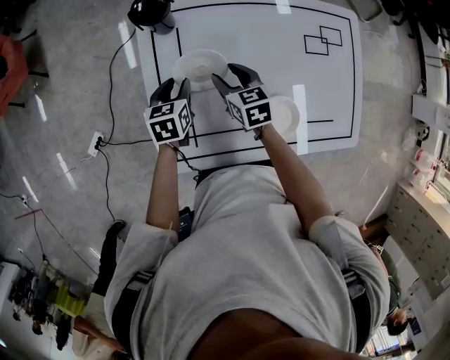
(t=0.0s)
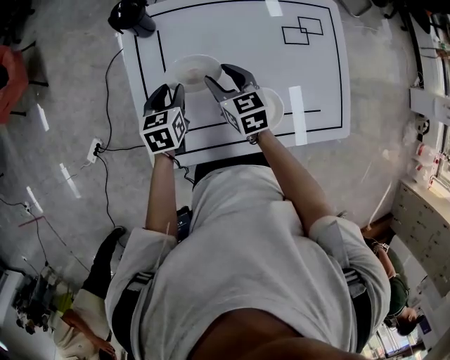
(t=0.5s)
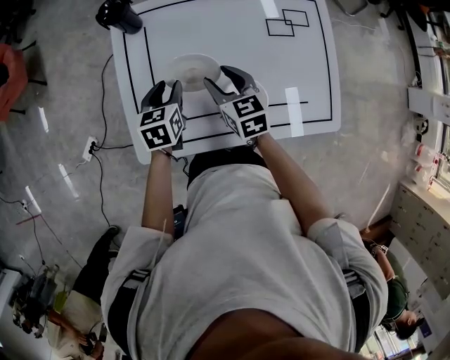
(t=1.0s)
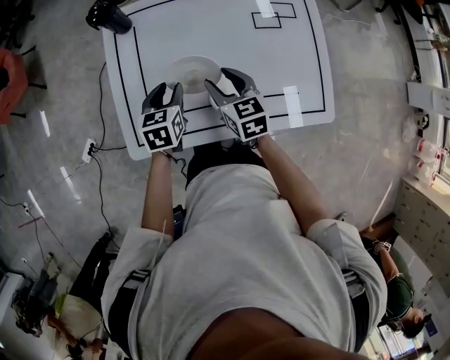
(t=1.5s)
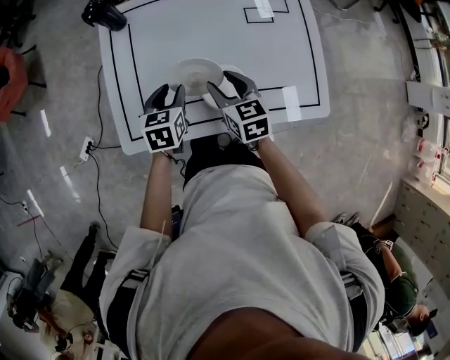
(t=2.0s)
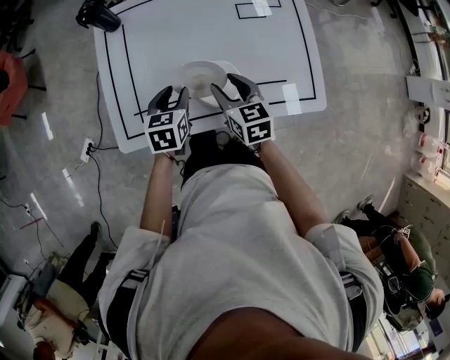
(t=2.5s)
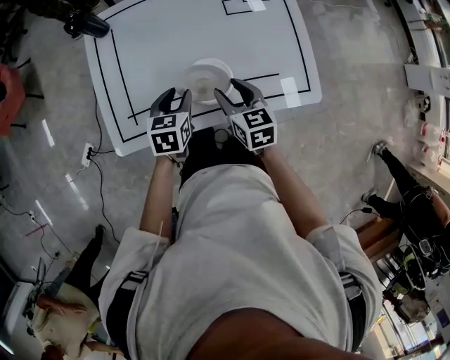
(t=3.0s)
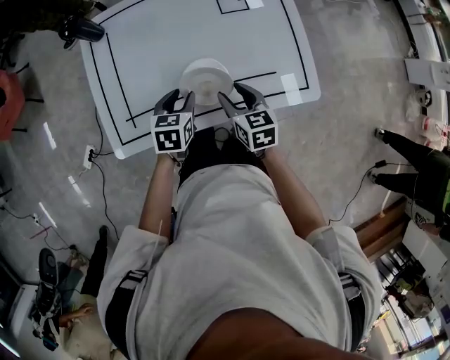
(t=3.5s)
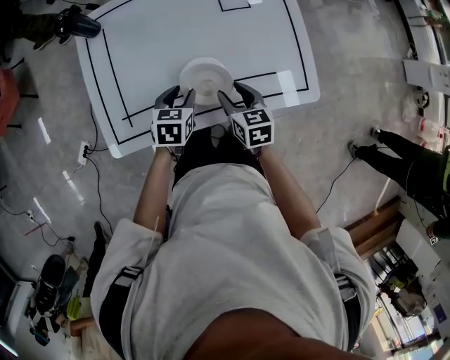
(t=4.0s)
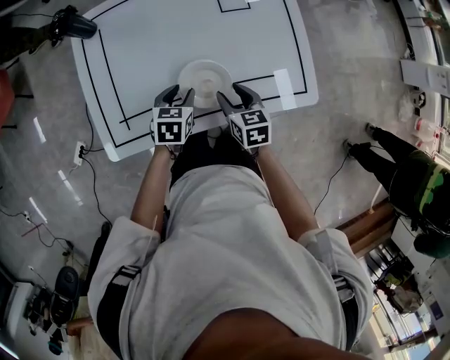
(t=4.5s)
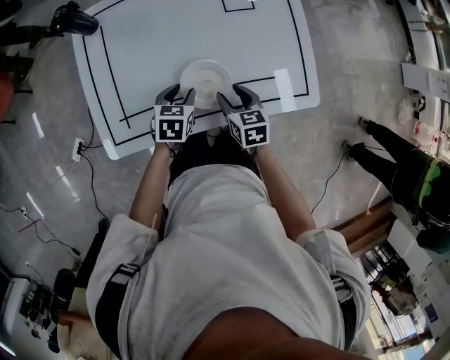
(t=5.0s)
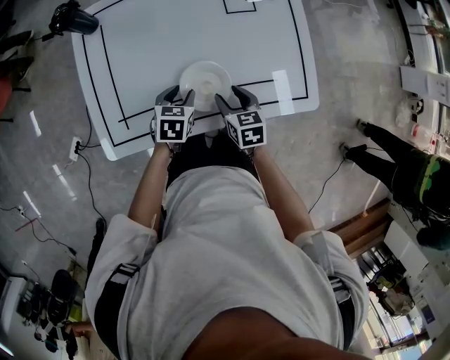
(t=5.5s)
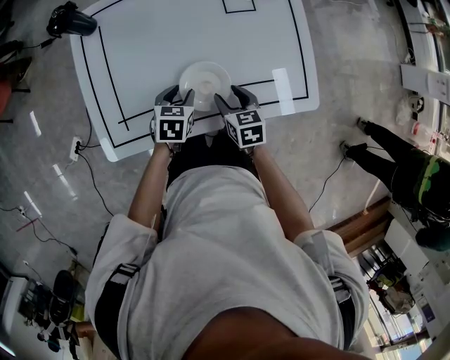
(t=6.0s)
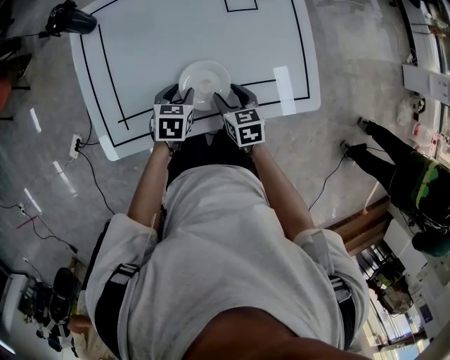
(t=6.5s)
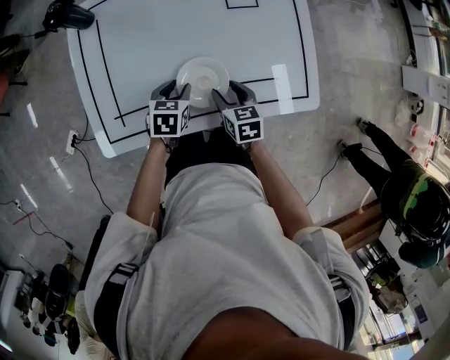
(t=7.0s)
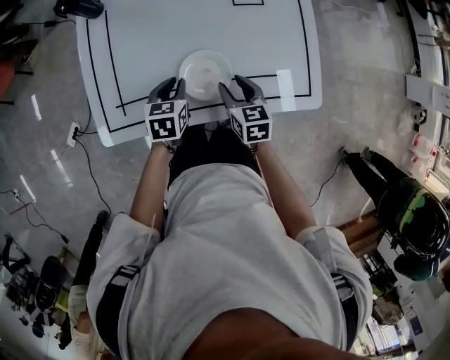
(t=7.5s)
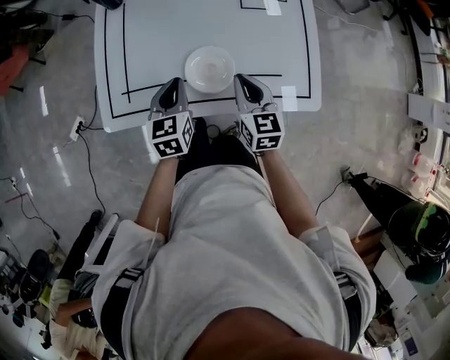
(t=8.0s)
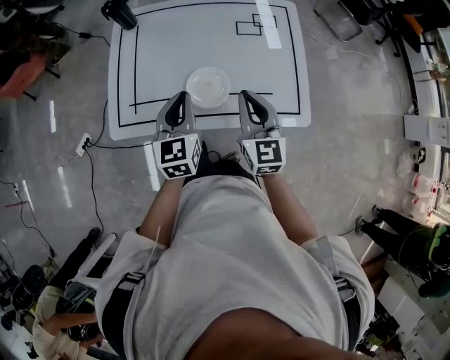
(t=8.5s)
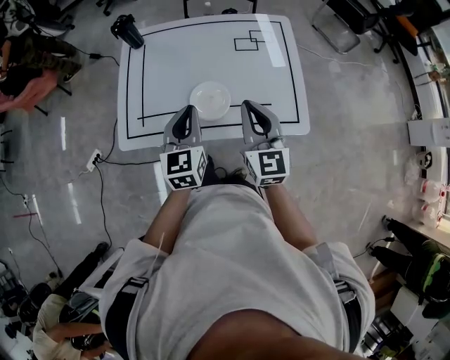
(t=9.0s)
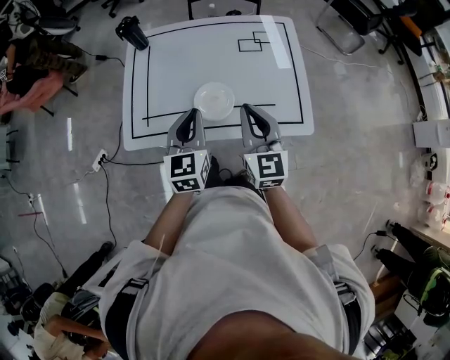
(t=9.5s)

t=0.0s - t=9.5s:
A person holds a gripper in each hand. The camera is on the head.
t=0.0s - t=2.0s: Both grippers move backward and to the right, roughly 25 cm.
t=2.0s - t=4.0s: The right gripper is displaced to the right, downward and backward by about 15 cm, while the left gripper goes approximately 10 cm to the right and downward.
t=4.0s - t=5.5s: The grippers move only a little.
t=5.5s - t=7.5s: The left gripper closes its fingers.
t=7.5s - t=9.5s: The right gripper moves upward, about 25 cm, angles its fingers upward, by about 30 degrees, and closes, while the left gripper travels upward and backward by roughly 25 cm, and tilts its fingers about 30 degrees upward.

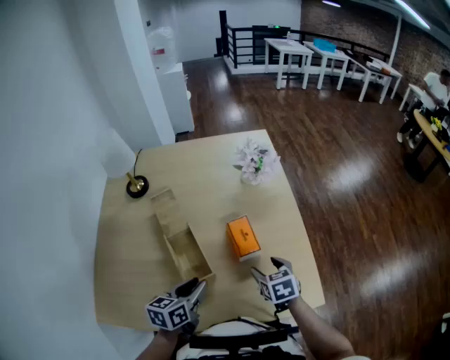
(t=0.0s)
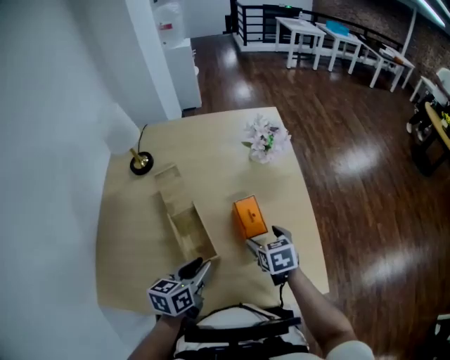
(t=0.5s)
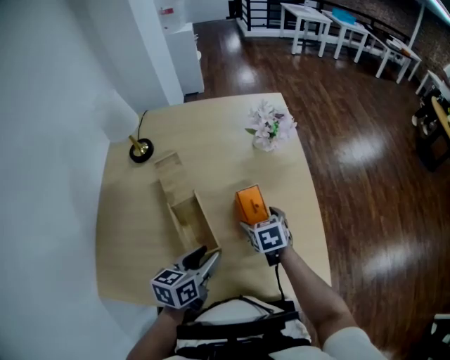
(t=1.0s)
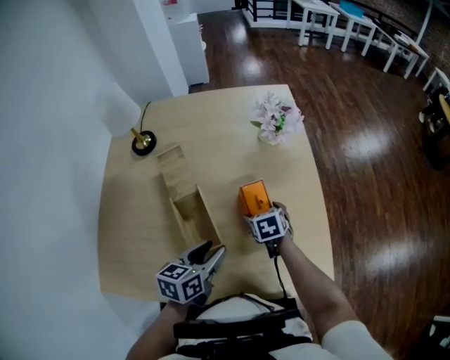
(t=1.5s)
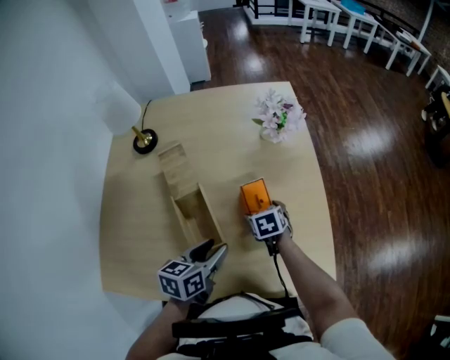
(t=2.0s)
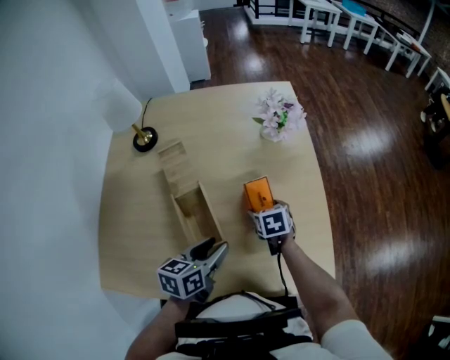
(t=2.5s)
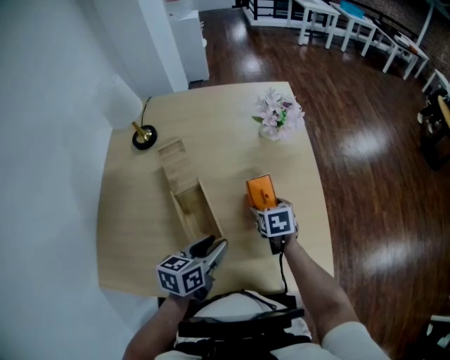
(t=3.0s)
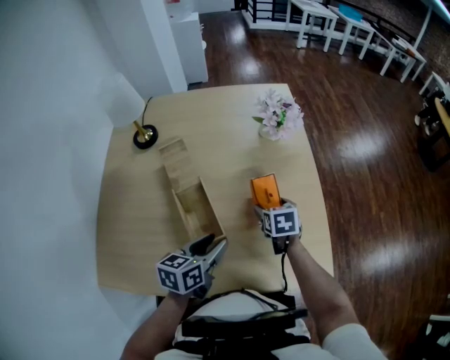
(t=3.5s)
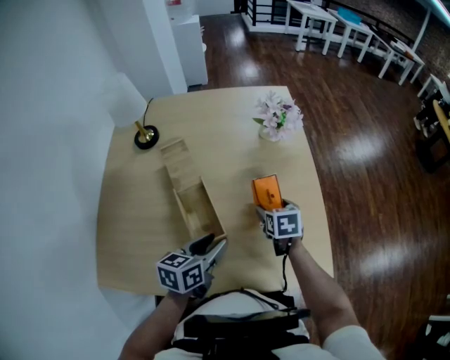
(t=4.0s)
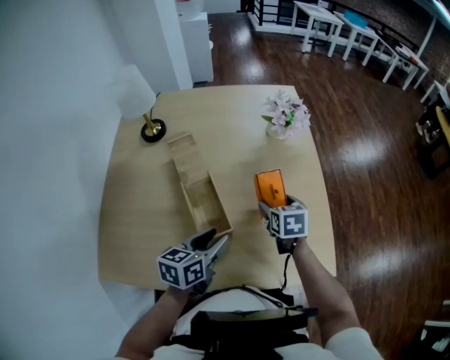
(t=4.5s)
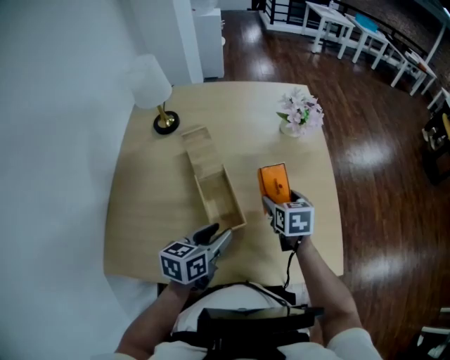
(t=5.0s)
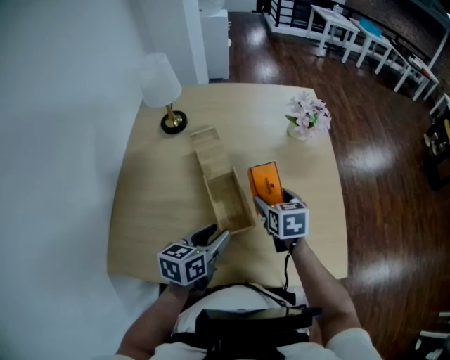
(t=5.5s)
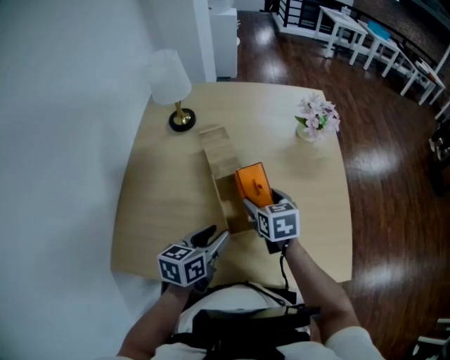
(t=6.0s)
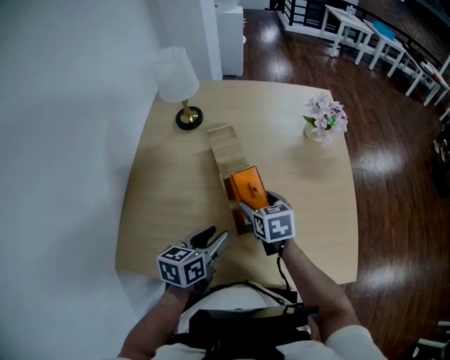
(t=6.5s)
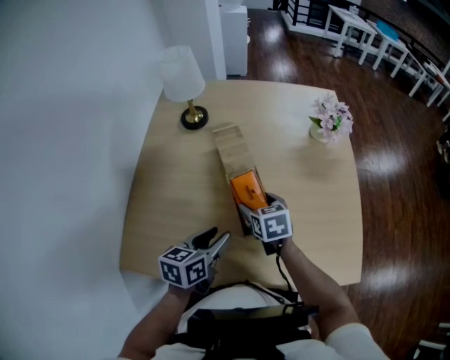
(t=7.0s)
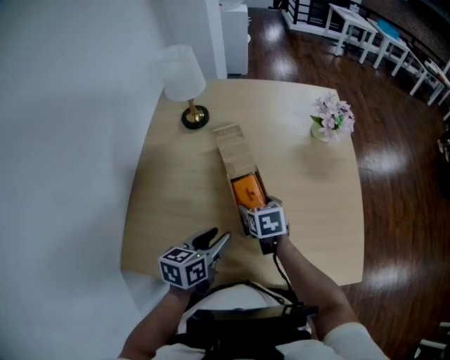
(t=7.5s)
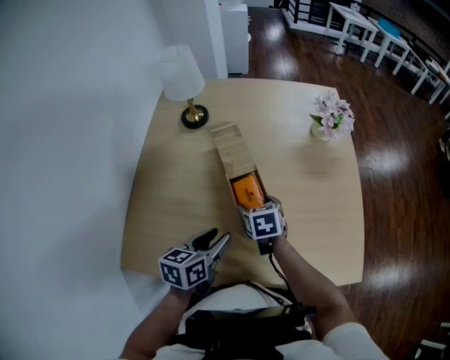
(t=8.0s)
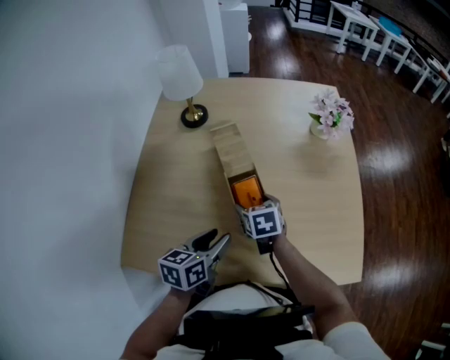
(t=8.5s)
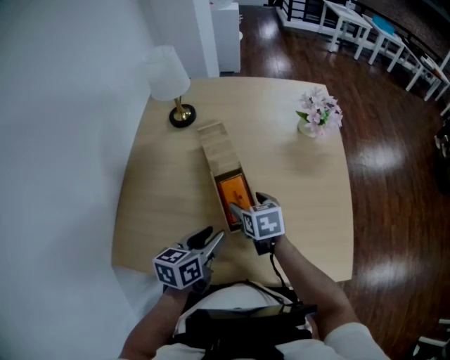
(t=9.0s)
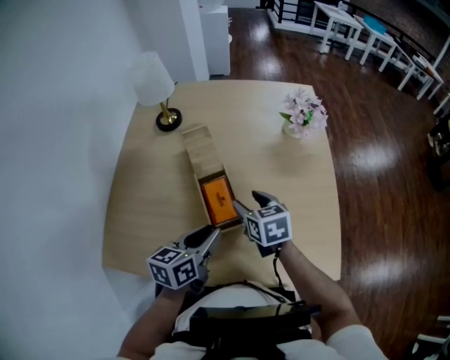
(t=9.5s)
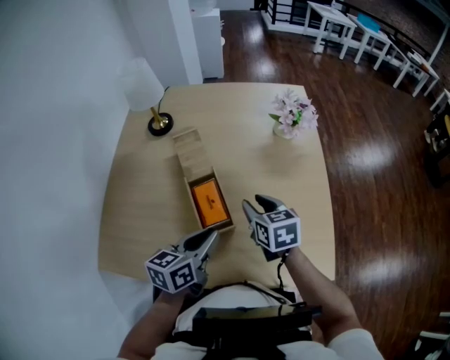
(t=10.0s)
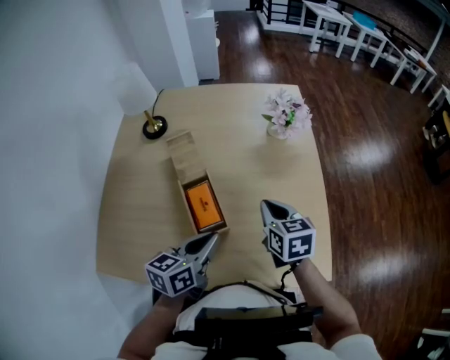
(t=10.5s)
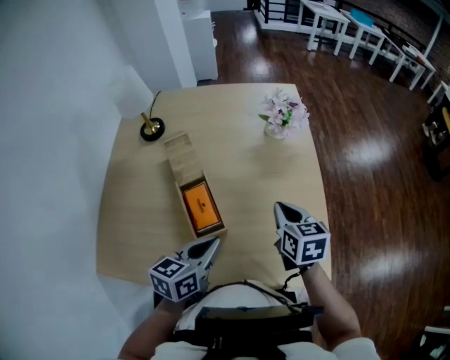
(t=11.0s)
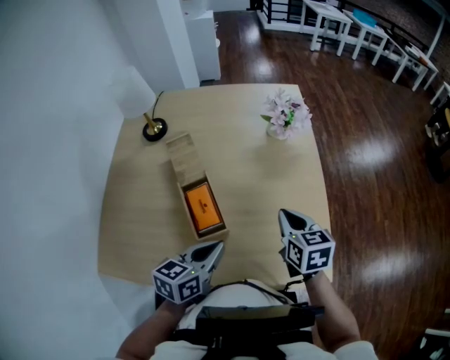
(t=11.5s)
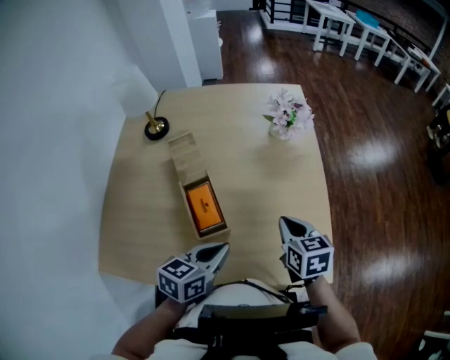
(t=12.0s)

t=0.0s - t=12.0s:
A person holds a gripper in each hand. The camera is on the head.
t=0.0s - t=2.0s: The right gripper travels forward, downward and to the left by roughly 15 cm, and opens its fingers. Meanwhile the left gripper goes some 5 cm forward.
t=2.0s - t=4.0s: The right gripper goes some 5 cm upward.
t=4.0s - t=6.0s: The left gripper moves to the left, roughly 10 cm. The right gripper travels to the left by roughly 20 cm.
t=6.0s - t=8.0s: The right gripper goes about 10 cm downward and to the left.
t=8.0s - t=10.0s: The right gripper is displaced to the right and upward by about 15 cm, and closes up. Meanwhile the left gripper moves to the right, roughly 10 cm, and closes up.
t=10.0s - t=12.0s: The right gripper shifts approximately 10 cm to the right, and closes; the left gripper shifts roughly 5 cm to the right.

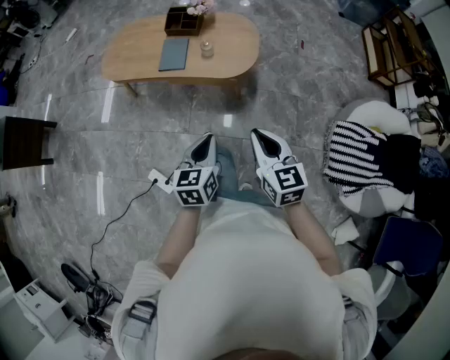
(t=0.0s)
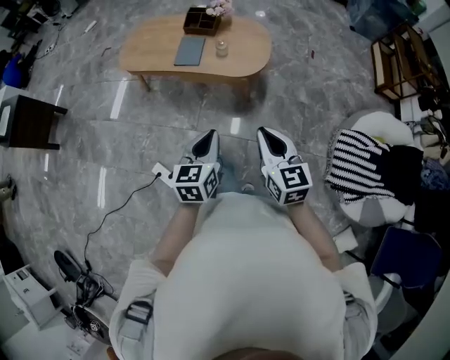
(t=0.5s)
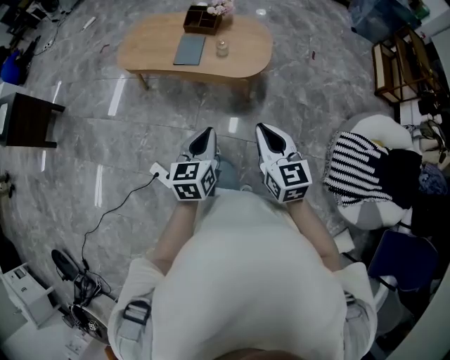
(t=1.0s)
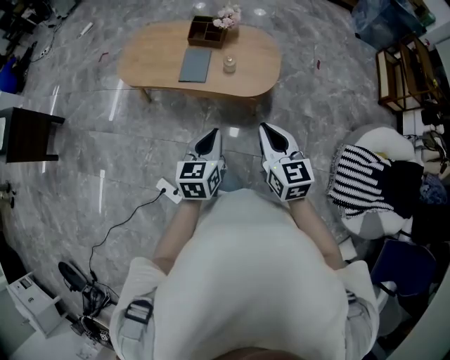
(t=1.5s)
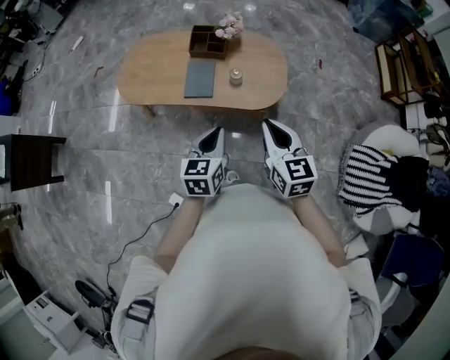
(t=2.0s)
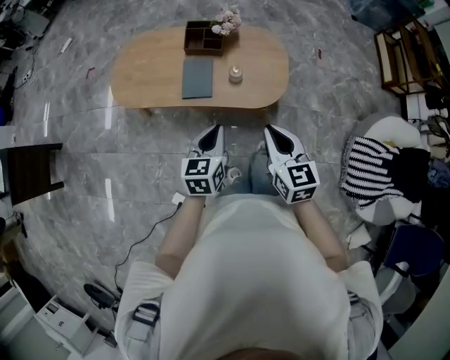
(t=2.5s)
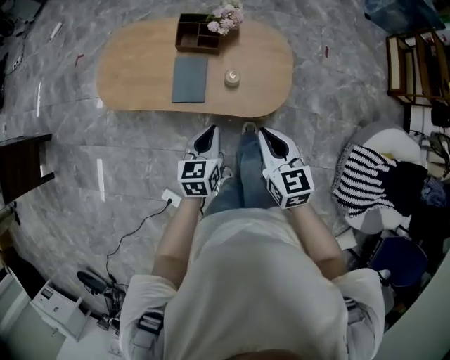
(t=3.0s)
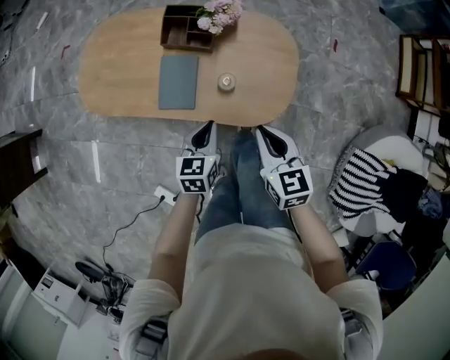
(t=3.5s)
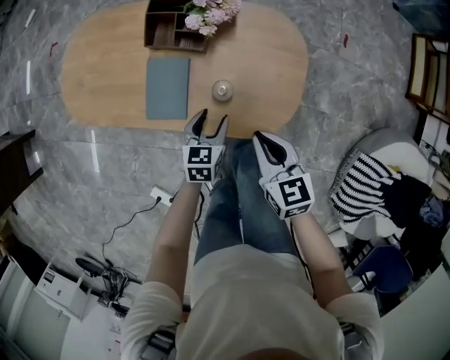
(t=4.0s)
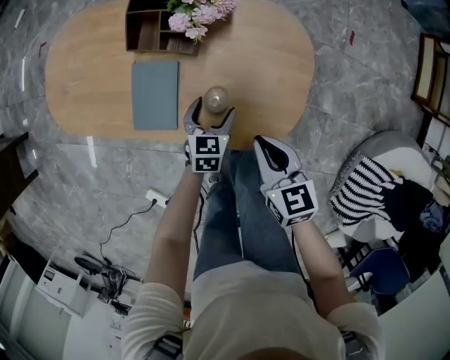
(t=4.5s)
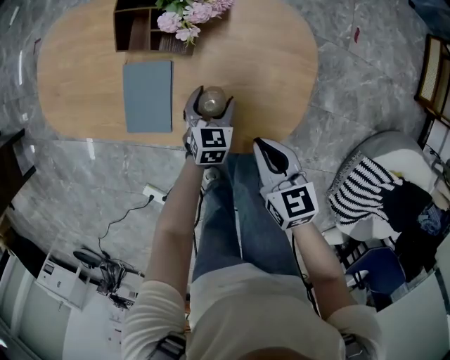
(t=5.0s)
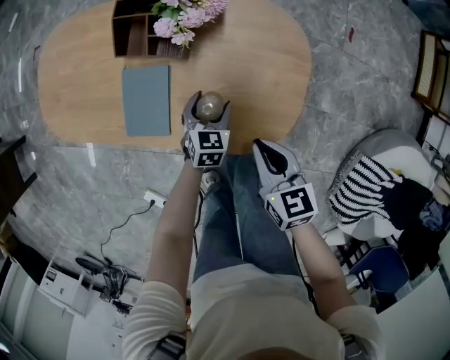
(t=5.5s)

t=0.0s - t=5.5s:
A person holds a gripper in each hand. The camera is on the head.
t=0.0s - t=2.0s: The two grippers go some 25 cm forward and to the left.
t=2.0s - t=3.5s: The grippers both shift forward and downward by some 35 cm.
t=3.5s - t=5.5s: Both grippers move downward and forward, about 25 cm. The left gripper opens.
